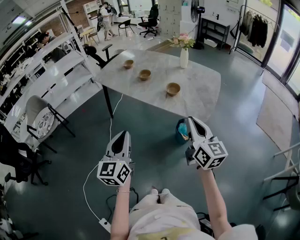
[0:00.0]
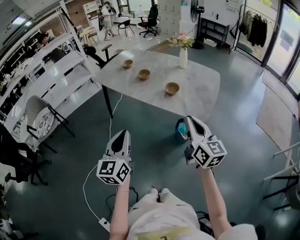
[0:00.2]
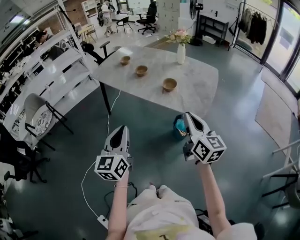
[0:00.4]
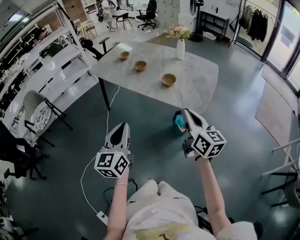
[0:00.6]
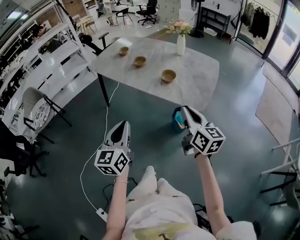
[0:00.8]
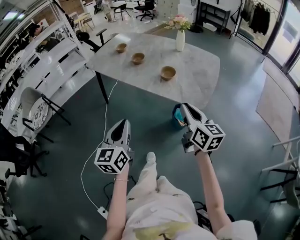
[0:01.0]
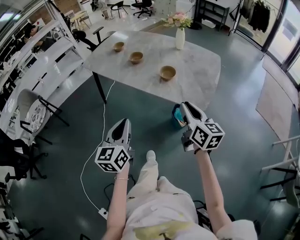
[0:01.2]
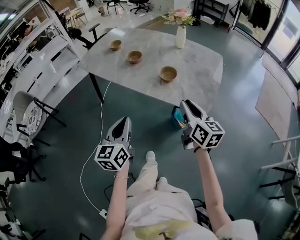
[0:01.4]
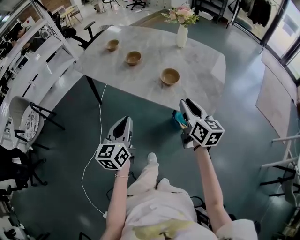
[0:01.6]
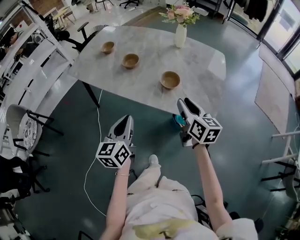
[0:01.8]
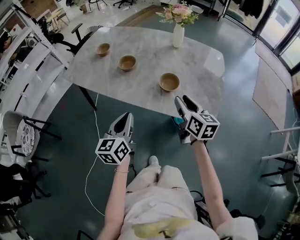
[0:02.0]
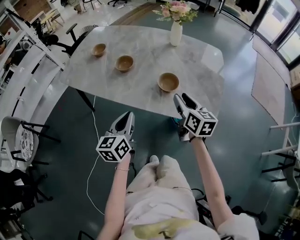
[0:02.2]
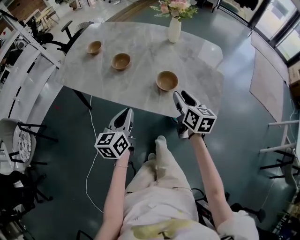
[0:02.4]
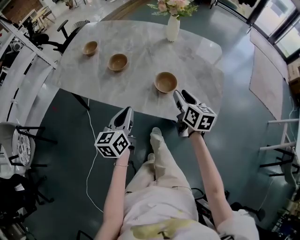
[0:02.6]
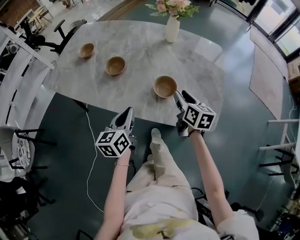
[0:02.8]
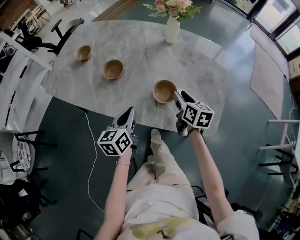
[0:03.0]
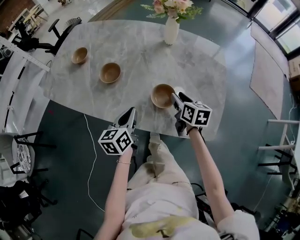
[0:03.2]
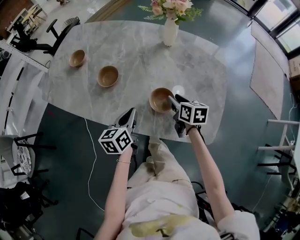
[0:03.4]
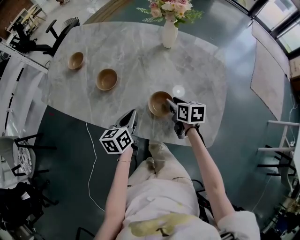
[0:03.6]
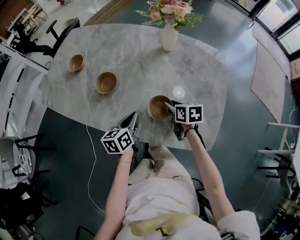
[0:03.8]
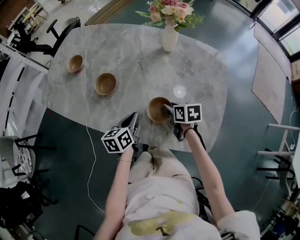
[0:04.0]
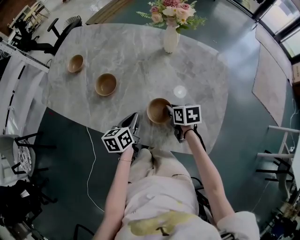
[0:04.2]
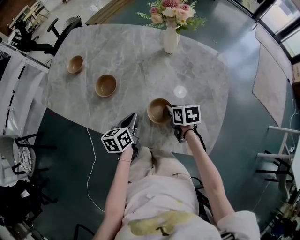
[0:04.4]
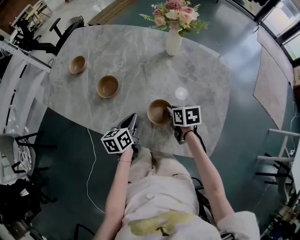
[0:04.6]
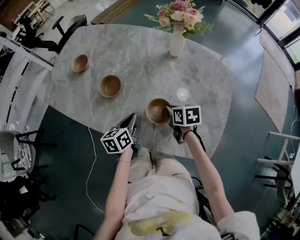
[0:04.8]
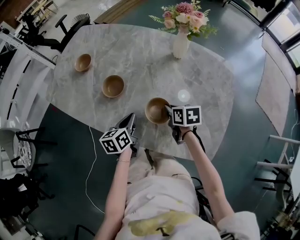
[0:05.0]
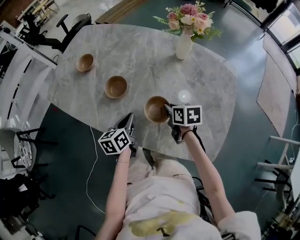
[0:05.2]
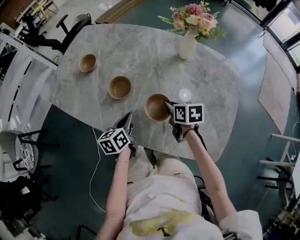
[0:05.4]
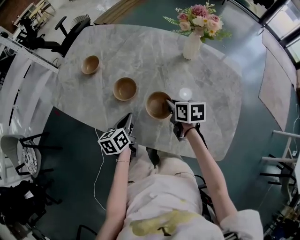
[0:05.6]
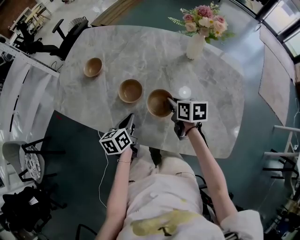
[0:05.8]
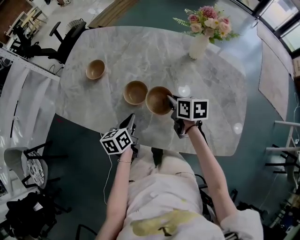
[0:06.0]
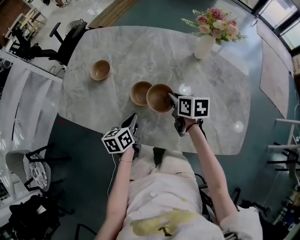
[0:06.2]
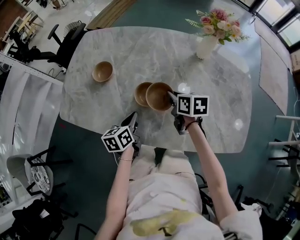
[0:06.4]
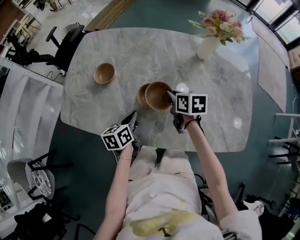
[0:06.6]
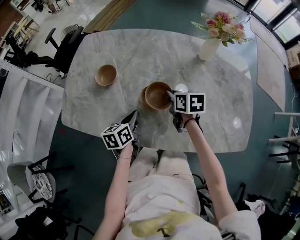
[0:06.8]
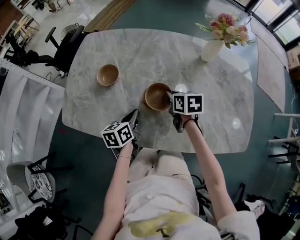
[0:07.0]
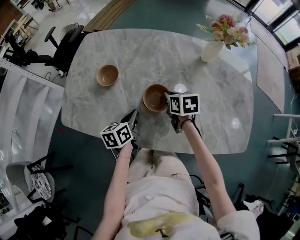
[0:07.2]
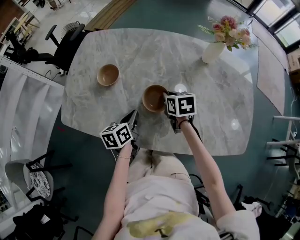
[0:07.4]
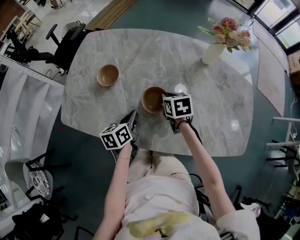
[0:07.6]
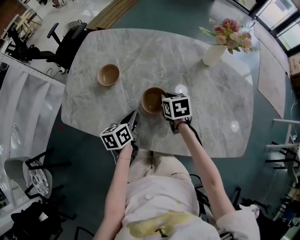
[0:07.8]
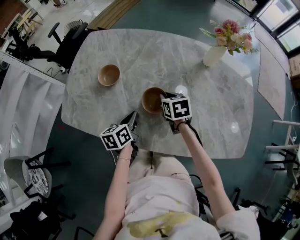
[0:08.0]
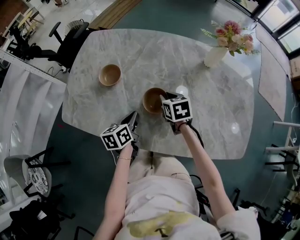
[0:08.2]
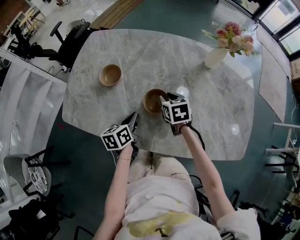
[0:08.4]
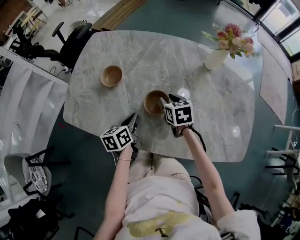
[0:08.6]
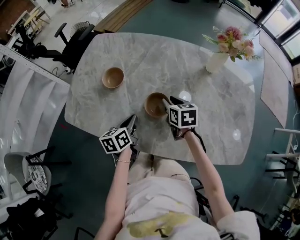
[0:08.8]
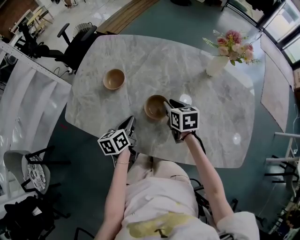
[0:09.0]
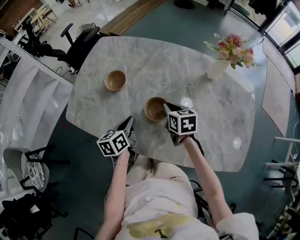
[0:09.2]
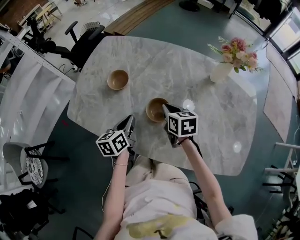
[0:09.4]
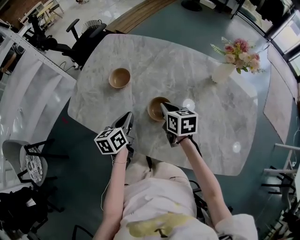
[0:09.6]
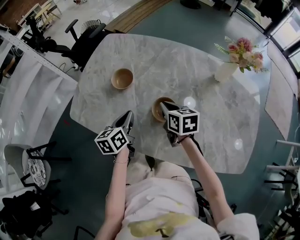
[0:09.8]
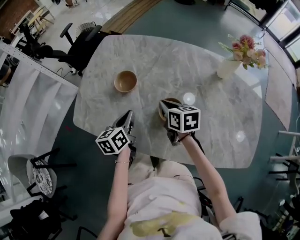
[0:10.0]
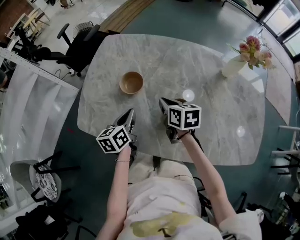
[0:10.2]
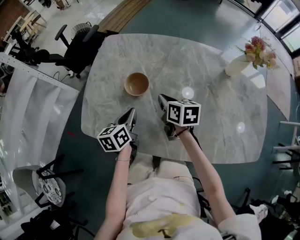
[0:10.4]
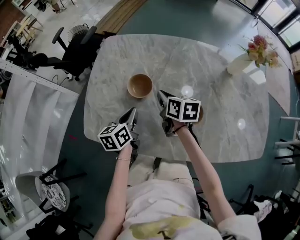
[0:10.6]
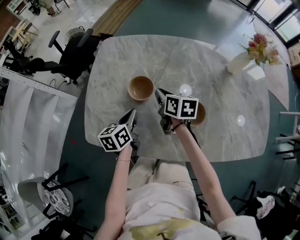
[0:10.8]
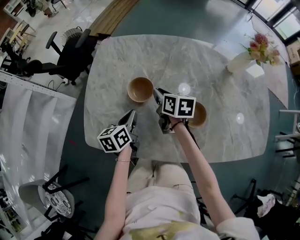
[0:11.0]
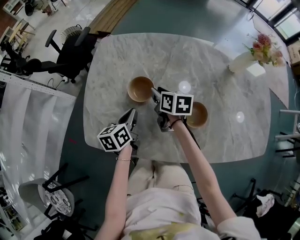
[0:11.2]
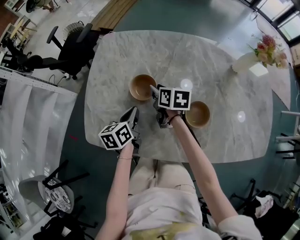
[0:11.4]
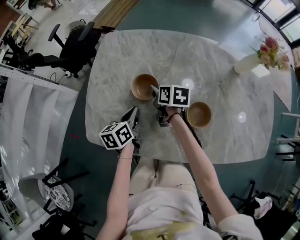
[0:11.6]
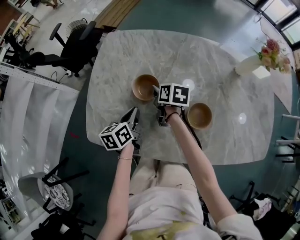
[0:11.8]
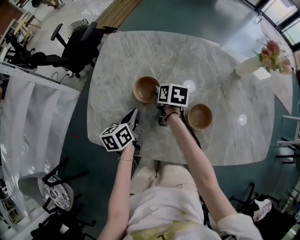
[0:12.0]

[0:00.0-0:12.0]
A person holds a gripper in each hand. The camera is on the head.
0:00.0 to 0:01.6: The two grippers go some 25 cm forward and downward. The right gripper opens up.
0:01.6 to 0:03.0: The right gripper heads forward and downward, covering about 25 cm, and turns by roughly 20 degrees. Meanwhile the left gripper moves forward, about 25 cm.
0:03.0 to 0:04.4: The right gripper moves downward and forward, roughly 10 cm, changes its angle by approximately 30 degrees, and closes up. Meanwhile the left gripper moves forward and downward, about 10 cm.
0:04.4 to 0:06.0: The right gripper heads to the left, forward and upward, covering some 20 cm, while the left gripper heads to the left and forward, covering some 15 cm.
0:06.0 to 0:07.6: The grippers both shift to the left and forward by about 10 cm.
0:07.6 to 0:09.0: There are only small adjustments of the grippers.
0:09.0 to 0:10.4: The two grippers go roughly 15 cm to the left and forward. The right gripper closes up.
0:10.4 to 0:12.0: The right gripper moves forward and downward, approximately 10 cm, and opens, then closes once more. Meanwhile the left gripper changes place by about 5 cm.

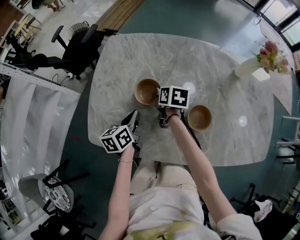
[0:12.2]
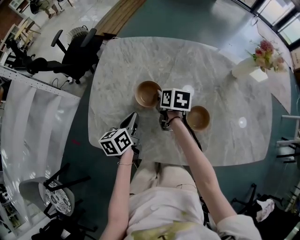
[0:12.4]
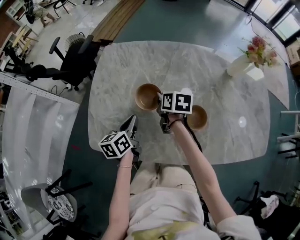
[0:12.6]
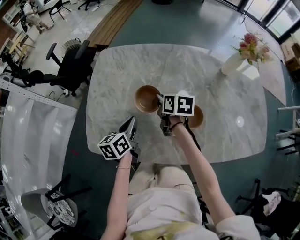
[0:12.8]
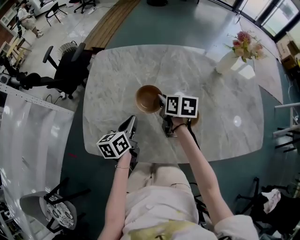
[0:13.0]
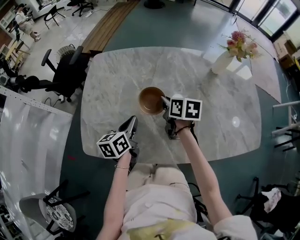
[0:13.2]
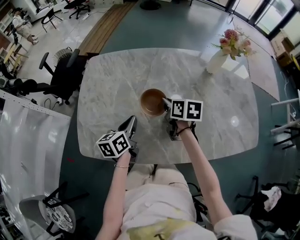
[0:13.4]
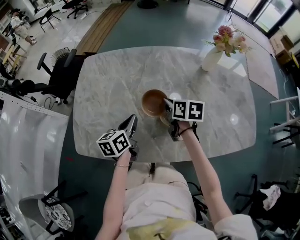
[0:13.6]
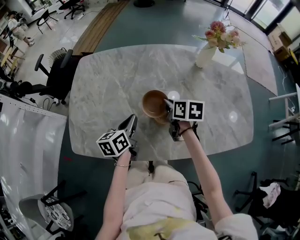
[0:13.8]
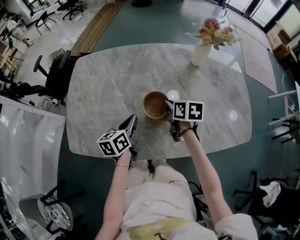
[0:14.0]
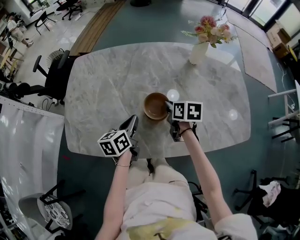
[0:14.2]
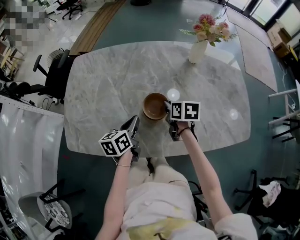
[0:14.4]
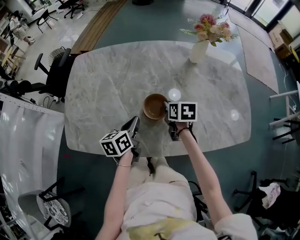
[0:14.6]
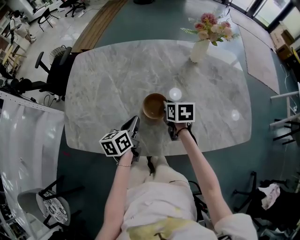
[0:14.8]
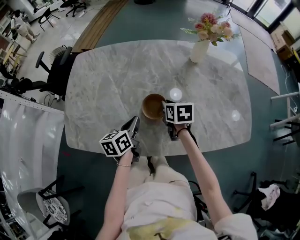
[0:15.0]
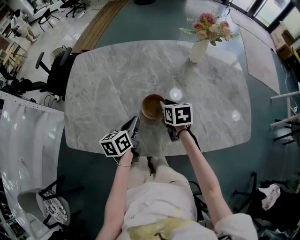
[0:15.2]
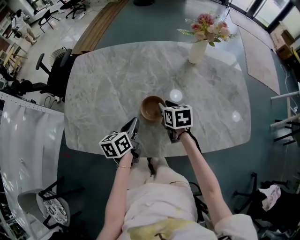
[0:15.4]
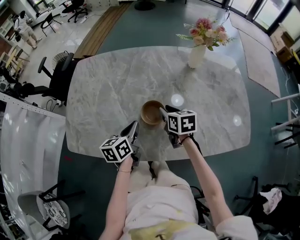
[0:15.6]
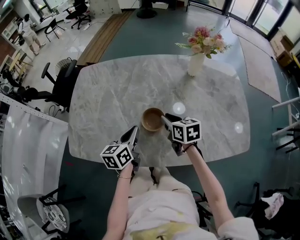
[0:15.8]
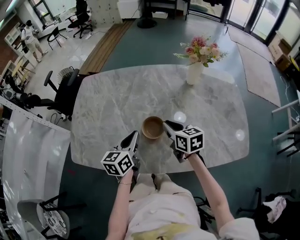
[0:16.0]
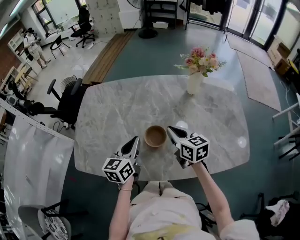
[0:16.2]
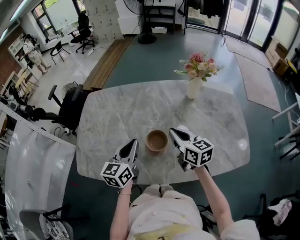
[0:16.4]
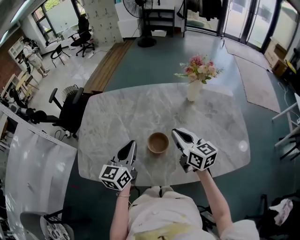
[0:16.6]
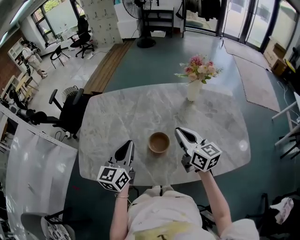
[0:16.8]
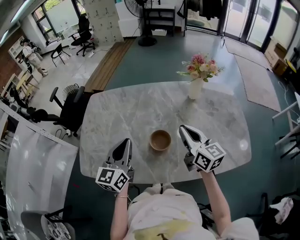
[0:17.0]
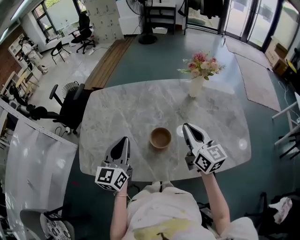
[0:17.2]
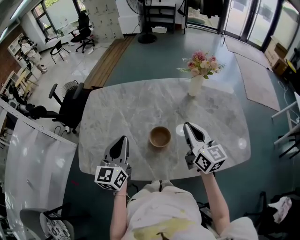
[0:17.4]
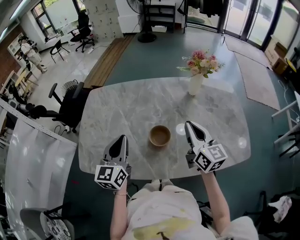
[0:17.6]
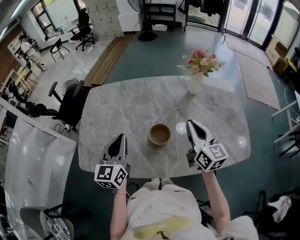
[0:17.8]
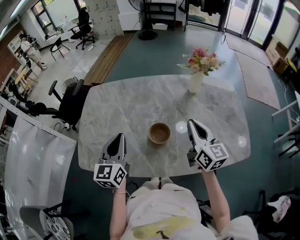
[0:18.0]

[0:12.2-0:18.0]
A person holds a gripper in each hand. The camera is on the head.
0:12.2 to 0:13.6: The left gripper goes approximately 15 cm to the right and upward. The right gripper travels to the right, backward and upward by some 20 cm.
0:13.6 to 0:15.0: The grippers both shift to the right by roughly 10 cm.
0:15.0 to 0:16.6: Both grippers travel together upward, about 15 cm. The left gripper rotates some 30 degrees, while the right gripper tips its fingers upward by roughly 40 degrees.
0:16.6 to 0:18.0: The right gripper travels to the right by approximately 5 cm, while the left gripper moves to the left, roughly 5 cm.

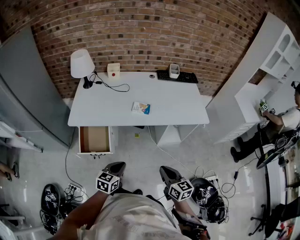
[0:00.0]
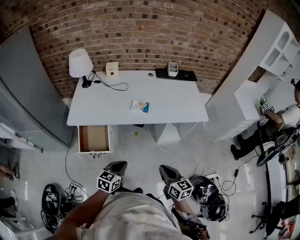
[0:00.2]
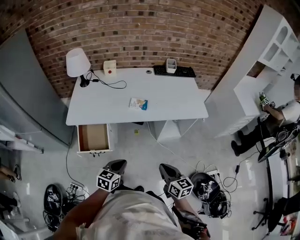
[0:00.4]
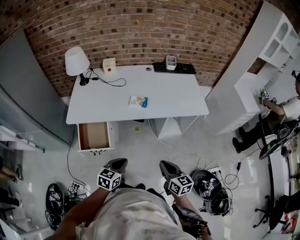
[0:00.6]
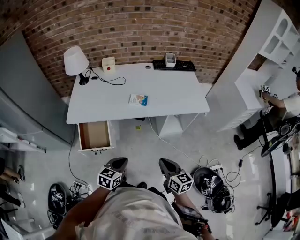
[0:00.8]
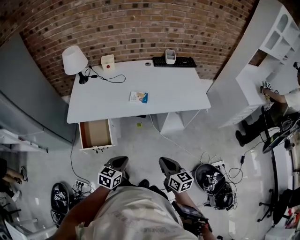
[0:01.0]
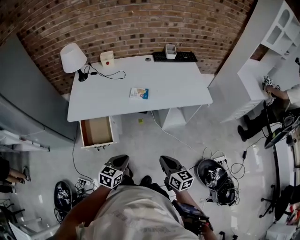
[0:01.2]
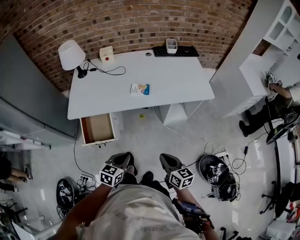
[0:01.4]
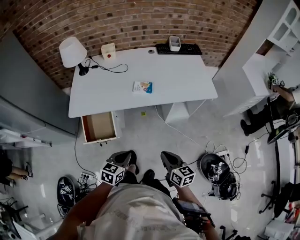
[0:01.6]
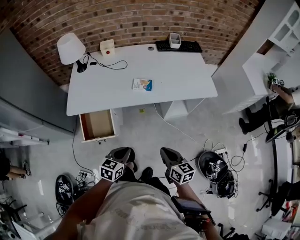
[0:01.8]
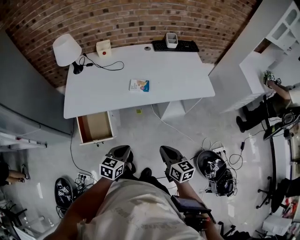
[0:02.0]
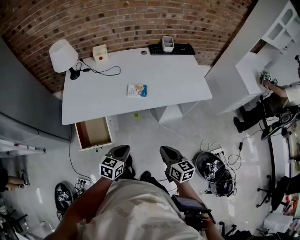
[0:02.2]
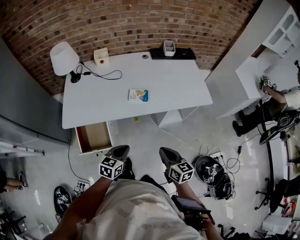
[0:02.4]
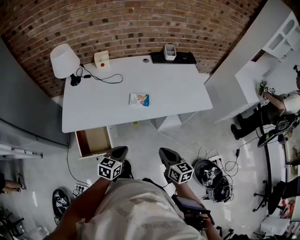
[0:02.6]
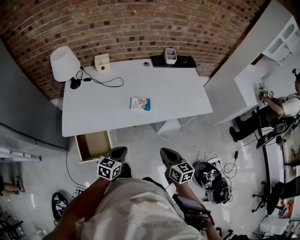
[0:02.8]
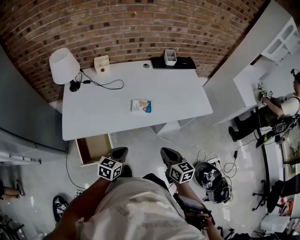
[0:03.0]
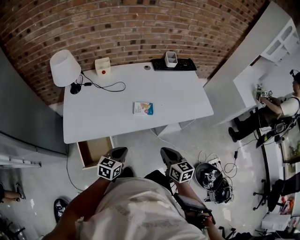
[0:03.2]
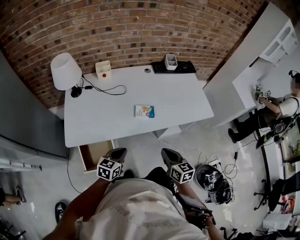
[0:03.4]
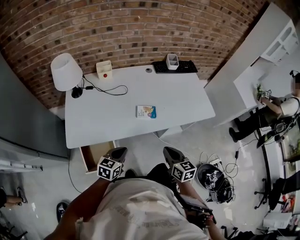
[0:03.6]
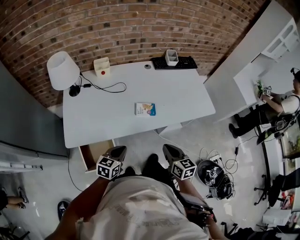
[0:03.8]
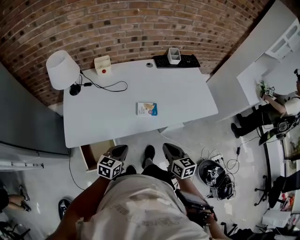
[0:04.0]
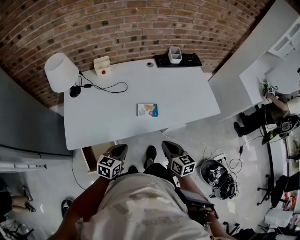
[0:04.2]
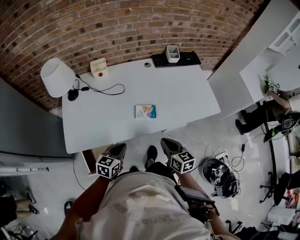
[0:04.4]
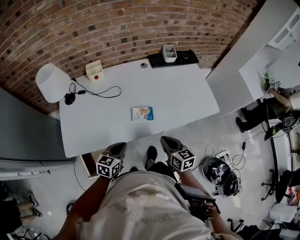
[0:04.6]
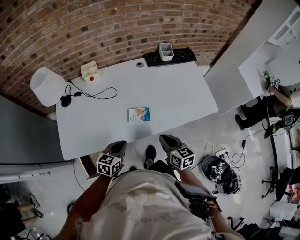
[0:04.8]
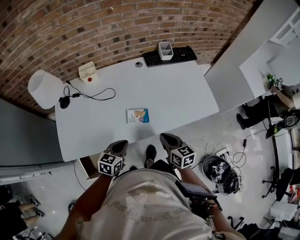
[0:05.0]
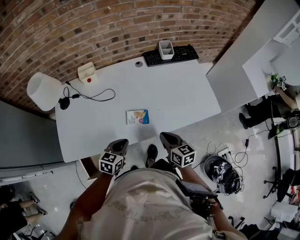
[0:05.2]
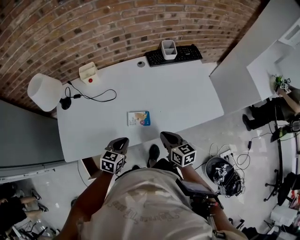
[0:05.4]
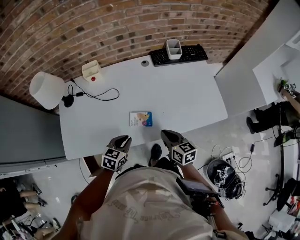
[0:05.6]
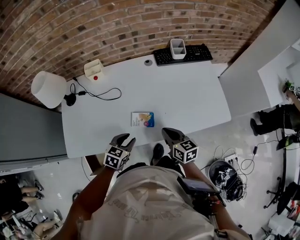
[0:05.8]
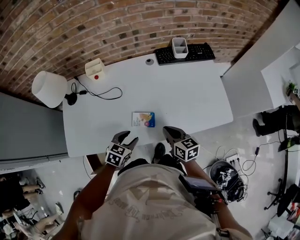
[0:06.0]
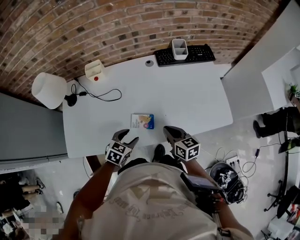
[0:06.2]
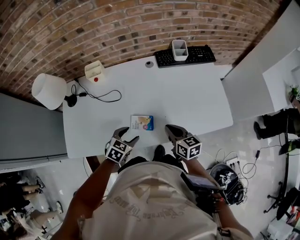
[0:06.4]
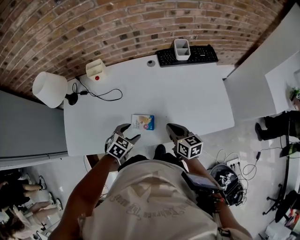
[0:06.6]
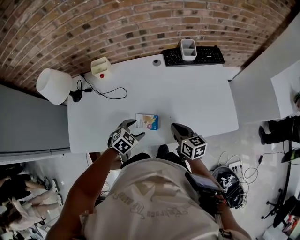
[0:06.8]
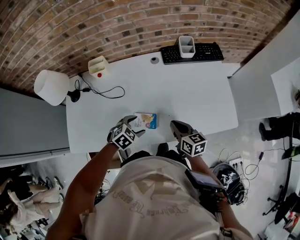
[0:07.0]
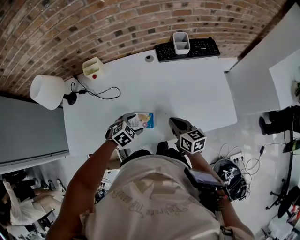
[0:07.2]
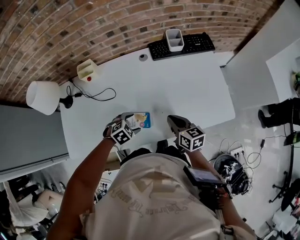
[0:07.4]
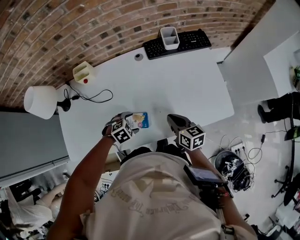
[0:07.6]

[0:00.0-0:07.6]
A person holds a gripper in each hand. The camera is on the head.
0:00.0 to 0:01.6: The grippers move only a little.
0:01.6 to 0:03.0: Both grippers move forward and to the left, roughly 15 cm.
0:03.0 to 0:04.6: Both grippers move forward, approximately 15 cm.
0:04.6 to 0:06.0: The left gripper goes about 15 cm forward and to the right, and opens. Meanwhile the right gripper heads forward, covering approximately 15 cm.
0:06.0 to 0:07.6: The right gripper is displaced forward and to the right by approximately 10 cm. The left gripper moves forward and downward, approximately 10 cm, turns by some 40 degrees, and opens its fingers.
